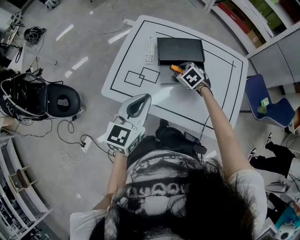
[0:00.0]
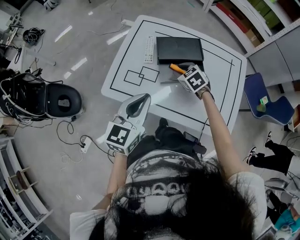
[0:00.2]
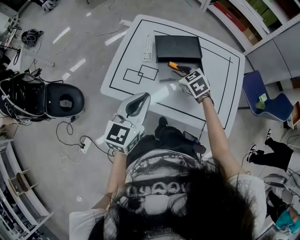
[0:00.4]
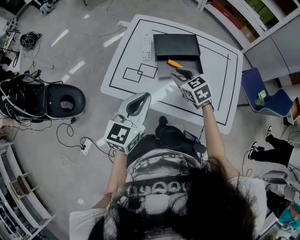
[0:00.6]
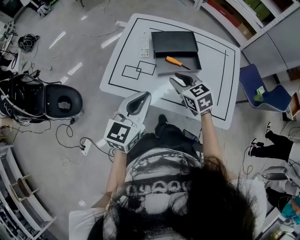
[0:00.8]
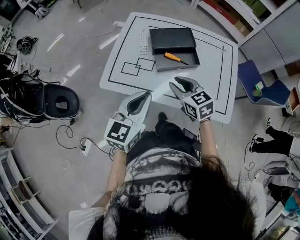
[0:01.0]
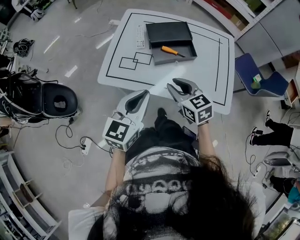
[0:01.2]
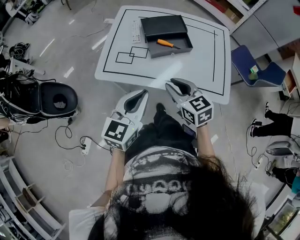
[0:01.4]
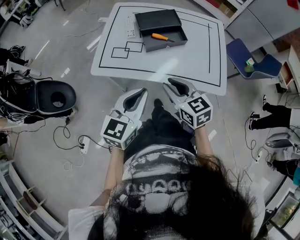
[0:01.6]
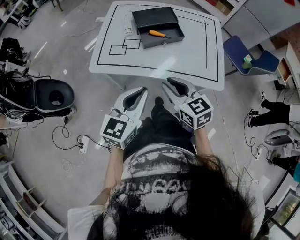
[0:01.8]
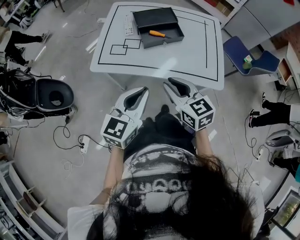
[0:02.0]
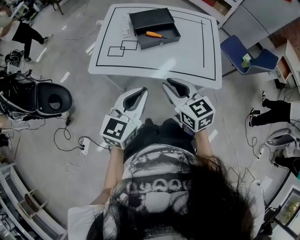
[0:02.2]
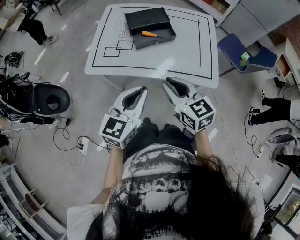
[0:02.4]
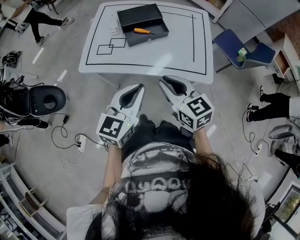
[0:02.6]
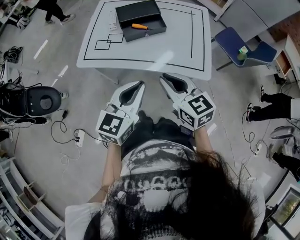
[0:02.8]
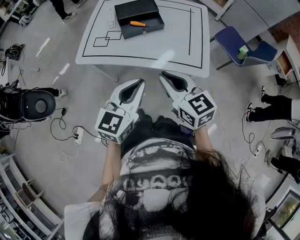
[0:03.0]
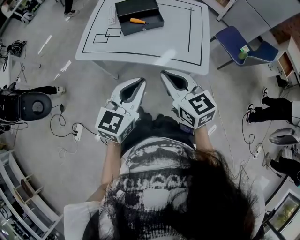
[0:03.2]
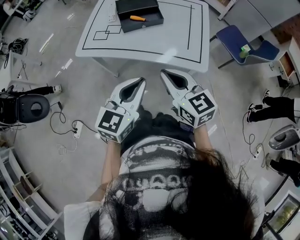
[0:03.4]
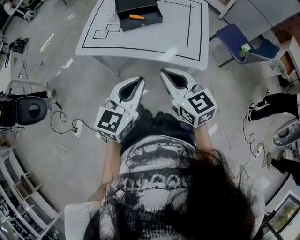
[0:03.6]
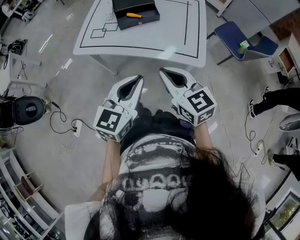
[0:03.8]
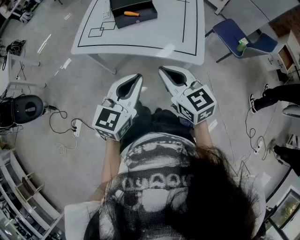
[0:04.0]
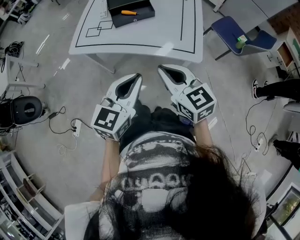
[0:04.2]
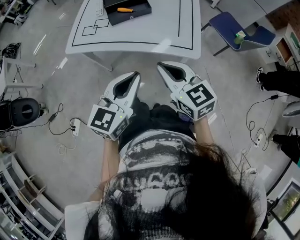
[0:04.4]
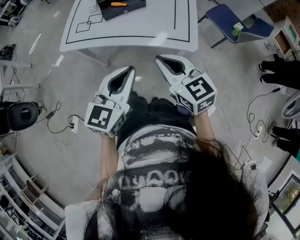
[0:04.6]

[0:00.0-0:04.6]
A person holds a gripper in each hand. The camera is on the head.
0:00.0 to 0:01.6: The left gripper is displaced backward by roughly 15 cm. Meanwhile the right gripper is displaced backward and upward by roughly 35 cm, and tips its fingers upward by some 30 degrees.
0:01.6 to 0:03.0: The left gripper travels to the right and backward by roughly 15 cm, while the right gripper is displaced to the right, backward and upward by some 15 cm.
0:03.0 to 0:04.6: The left gripper ends up roughly 5 cm from where it was, while the right gripper travels to the right by approximately 5 cm.

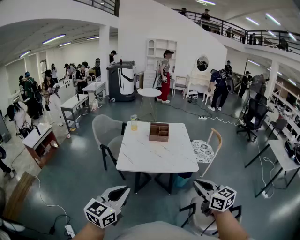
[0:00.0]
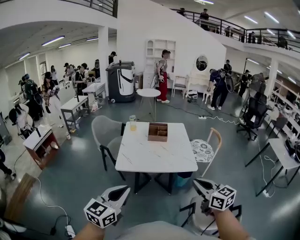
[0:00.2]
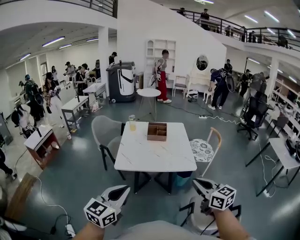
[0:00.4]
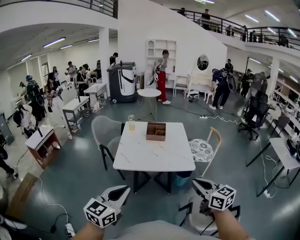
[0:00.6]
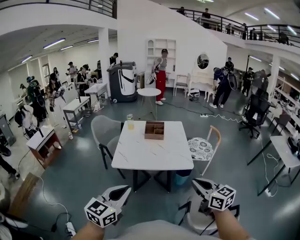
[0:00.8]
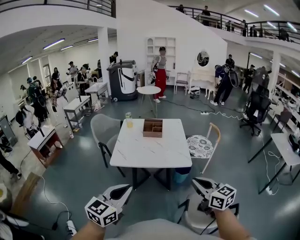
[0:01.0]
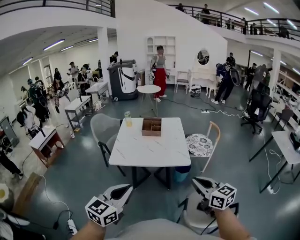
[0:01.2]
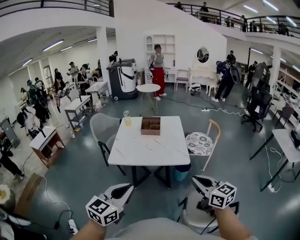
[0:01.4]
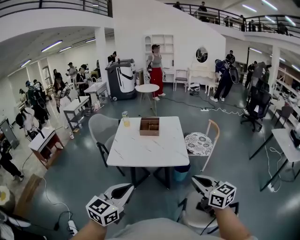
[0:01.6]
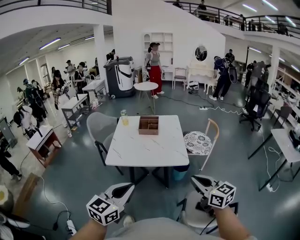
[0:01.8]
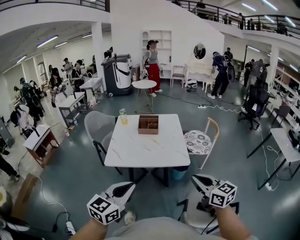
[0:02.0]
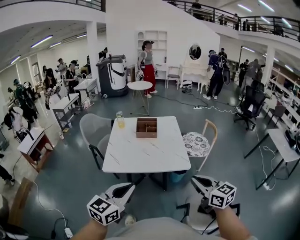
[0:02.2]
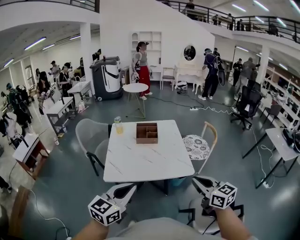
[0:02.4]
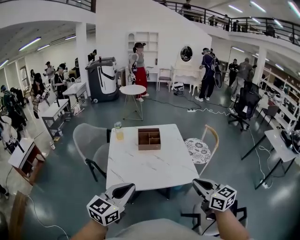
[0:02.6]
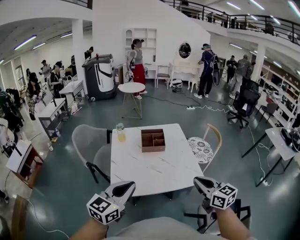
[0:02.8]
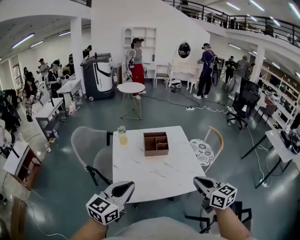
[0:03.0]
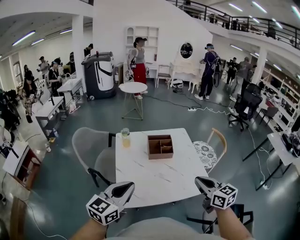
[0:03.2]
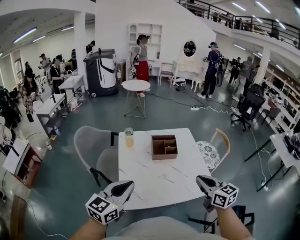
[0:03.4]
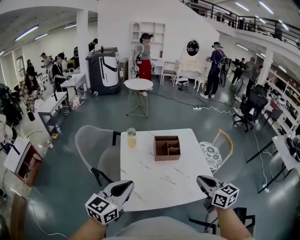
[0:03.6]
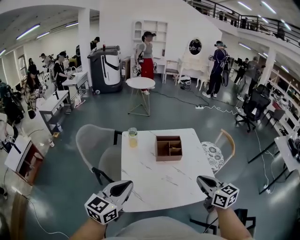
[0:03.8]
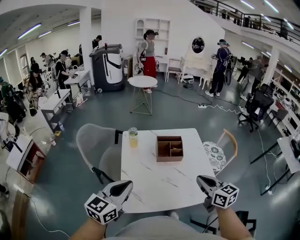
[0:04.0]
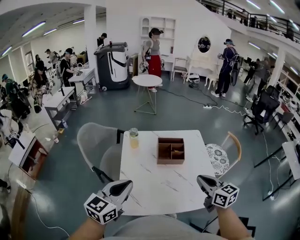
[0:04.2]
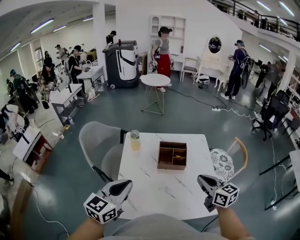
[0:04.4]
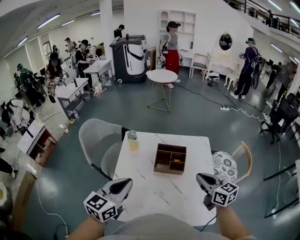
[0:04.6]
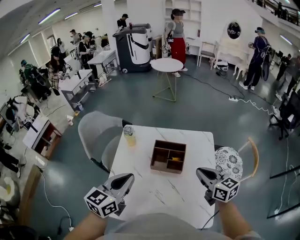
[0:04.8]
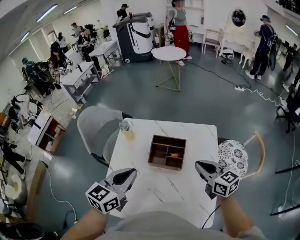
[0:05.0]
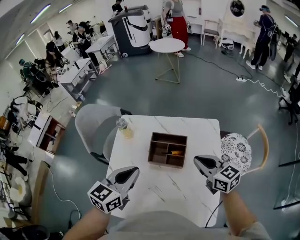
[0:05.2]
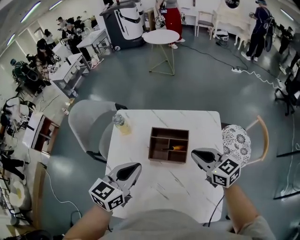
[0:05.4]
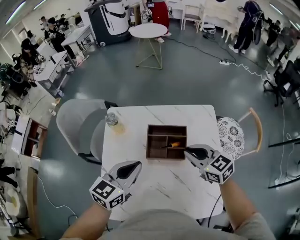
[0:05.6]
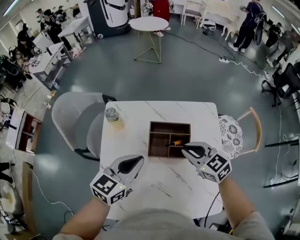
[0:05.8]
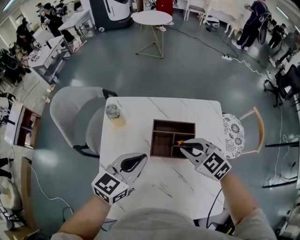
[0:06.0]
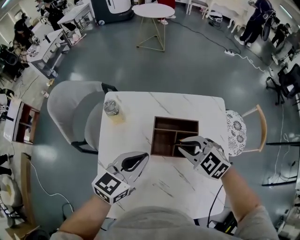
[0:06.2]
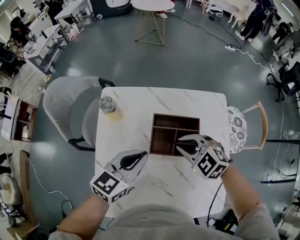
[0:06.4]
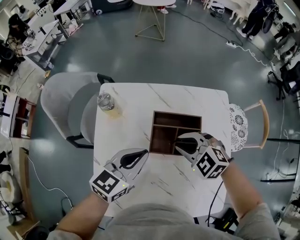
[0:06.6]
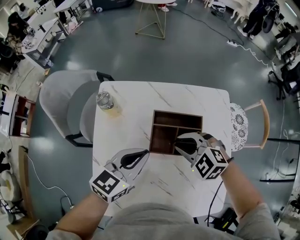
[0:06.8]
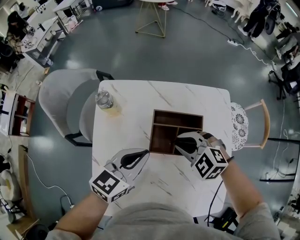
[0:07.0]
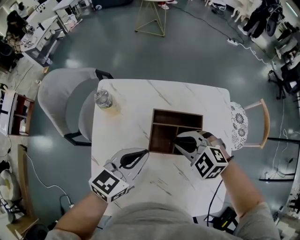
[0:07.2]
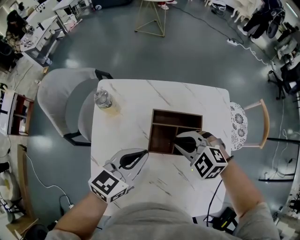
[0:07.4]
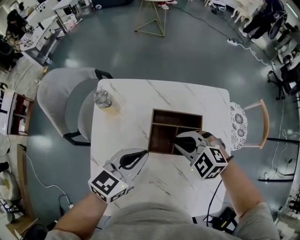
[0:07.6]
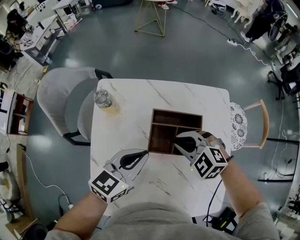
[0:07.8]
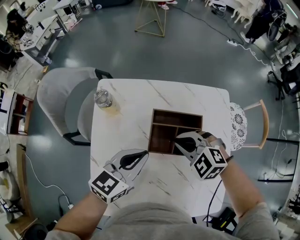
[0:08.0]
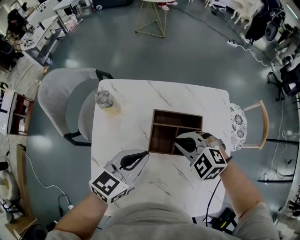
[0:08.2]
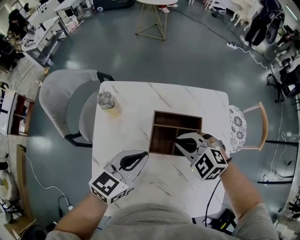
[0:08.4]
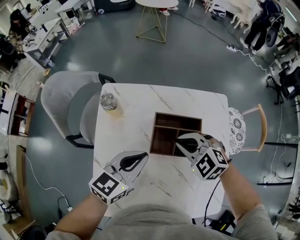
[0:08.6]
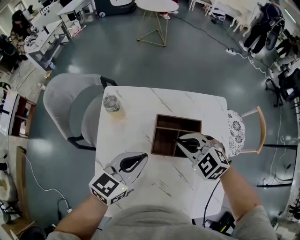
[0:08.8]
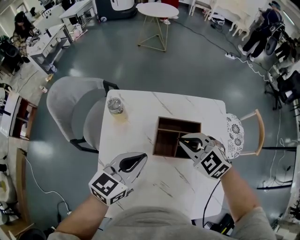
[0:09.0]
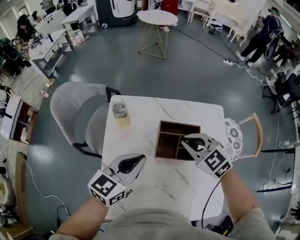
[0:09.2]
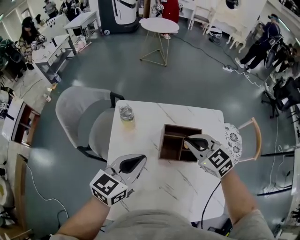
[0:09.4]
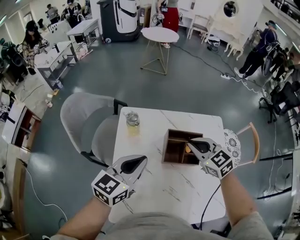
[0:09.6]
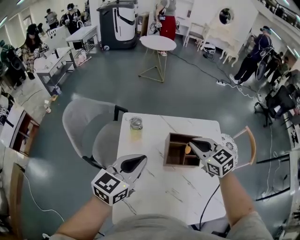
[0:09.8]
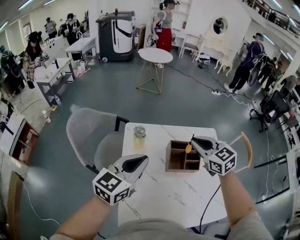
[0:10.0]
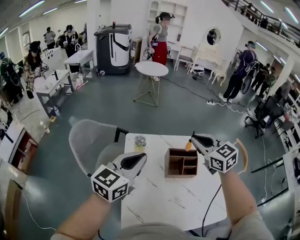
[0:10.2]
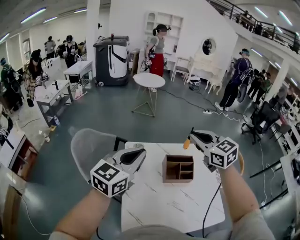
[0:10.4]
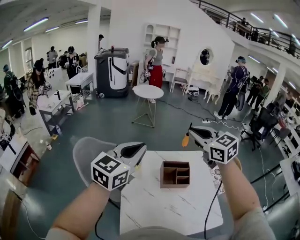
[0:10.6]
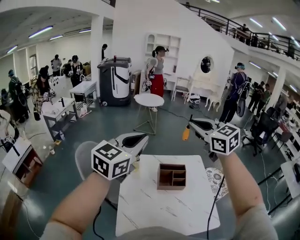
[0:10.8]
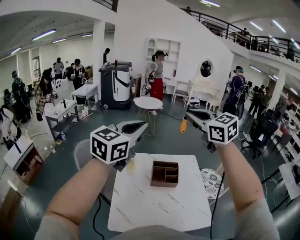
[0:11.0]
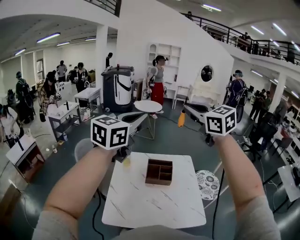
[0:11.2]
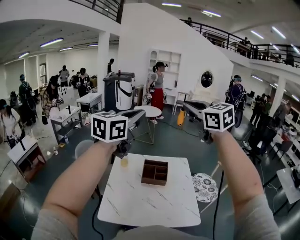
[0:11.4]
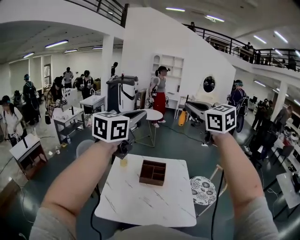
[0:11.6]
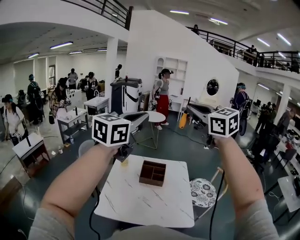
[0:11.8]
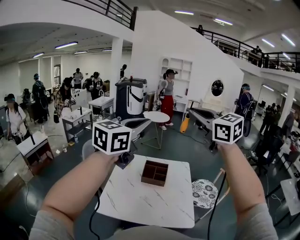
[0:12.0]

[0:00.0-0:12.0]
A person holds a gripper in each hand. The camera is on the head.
0:00.0 to 0:01.6: The grippers both shift to the right by roughly 15 cm.
0:01.6 to 0:03.0: The two grippers go some 35 cm forward and to the left.
0:03.0 to 0:04.4: The grippers both shift forward by roughly 20 cm.
0:04.4 to 0:06.0: The right gripper goes some 25 cm forward and downward, and rotates approximately 40 degrees. The left gripper heads forward, downward and to the right, covering roughly 25 cm.
0:06.0 to 0:07.6: Both grippers move downward, about 5 cm. The right gripper rotates about 20 degrees.
0:07.6 to 0:09.0: The left gripper moves some 5 cm. Meanwhile the right gripper moves upward, some 5 cm.
0:09.0 to 0:10.4: The left gripper moves upward and to the left, approximately 25 cm. The right gripper goes about 30 cm upward, and swivels some 30 degrees.
0:10.4 to 0:12.0: The two grippers go about 40 cm upward, backward and to the right. The right gripper changes its angle by roughly 20 degrees.

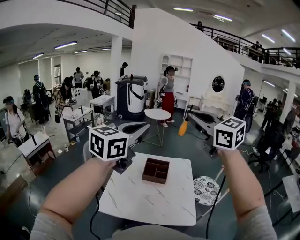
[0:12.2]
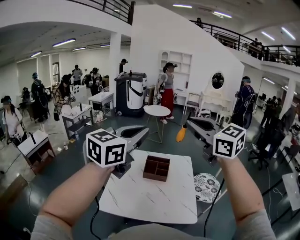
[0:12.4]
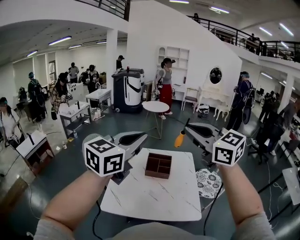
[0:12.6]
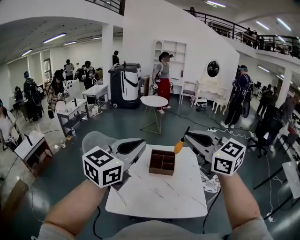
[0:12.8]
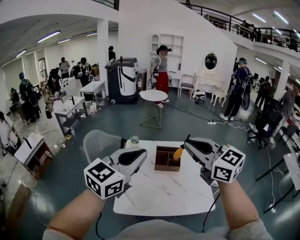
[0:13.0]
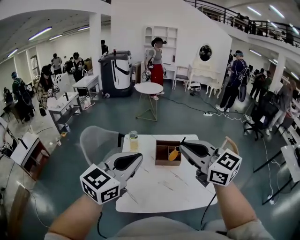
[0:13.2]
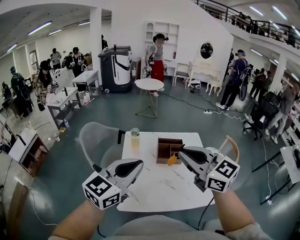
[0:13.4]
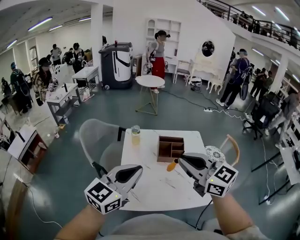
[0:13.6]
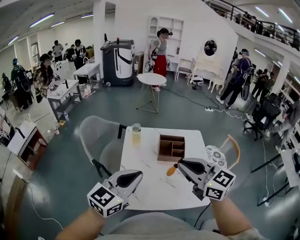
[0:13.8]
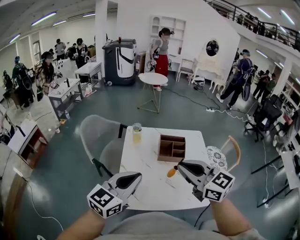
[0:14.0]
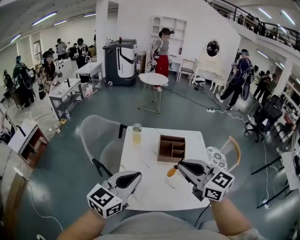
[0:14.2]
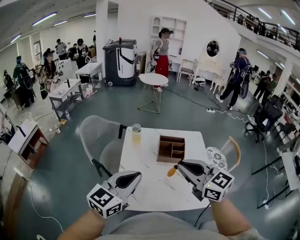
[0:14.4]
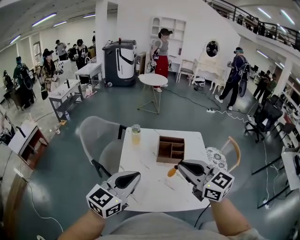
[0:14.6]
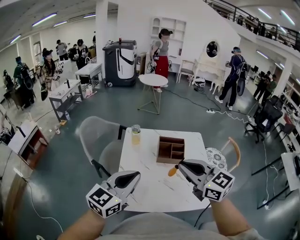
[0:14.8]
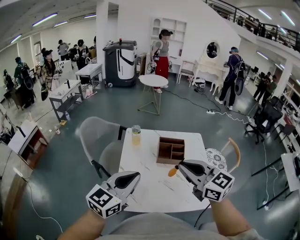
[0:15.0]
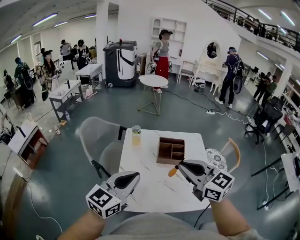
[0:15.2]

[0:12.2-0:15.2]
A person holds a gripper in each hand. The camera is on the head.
0:12.2 to 0:13.8: Both grippers move downward and to the left, some 30 cm.
0:13.8 to 0:15.2: The grippers make only small movements.

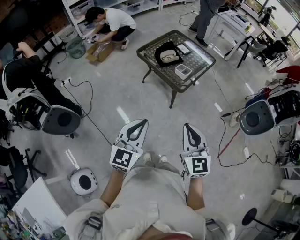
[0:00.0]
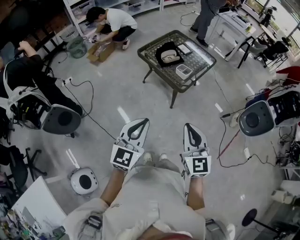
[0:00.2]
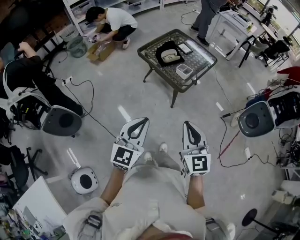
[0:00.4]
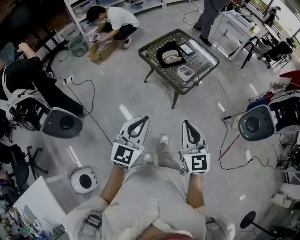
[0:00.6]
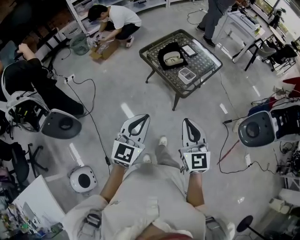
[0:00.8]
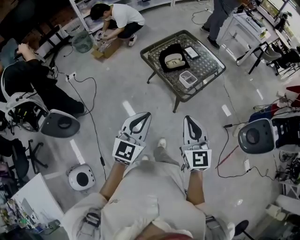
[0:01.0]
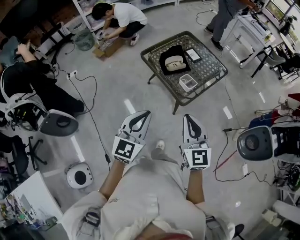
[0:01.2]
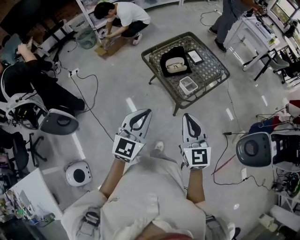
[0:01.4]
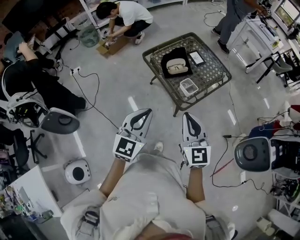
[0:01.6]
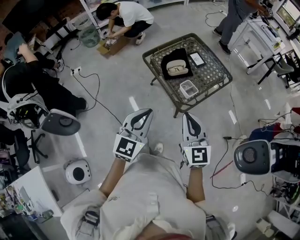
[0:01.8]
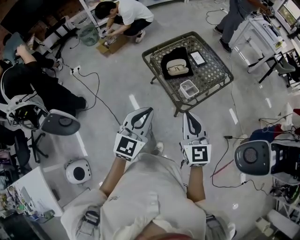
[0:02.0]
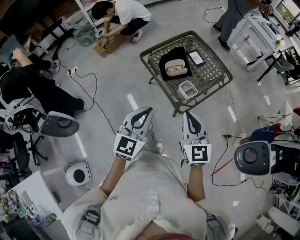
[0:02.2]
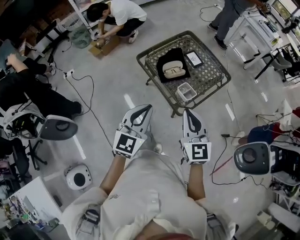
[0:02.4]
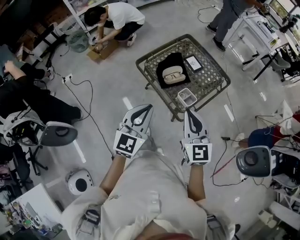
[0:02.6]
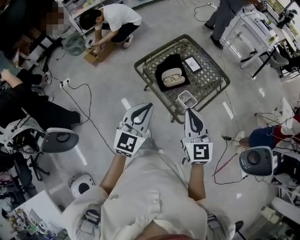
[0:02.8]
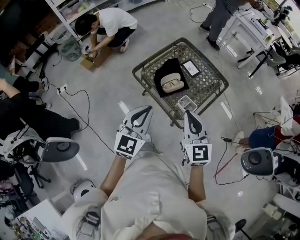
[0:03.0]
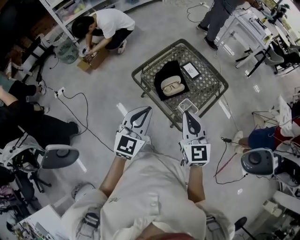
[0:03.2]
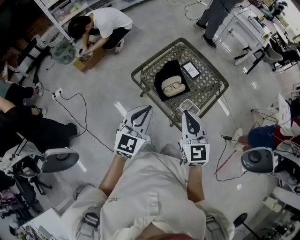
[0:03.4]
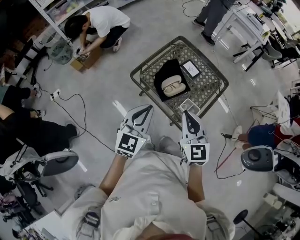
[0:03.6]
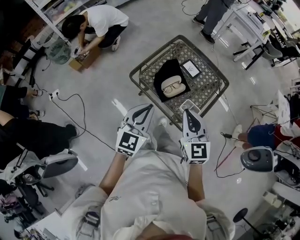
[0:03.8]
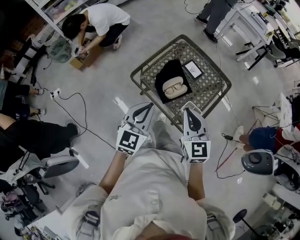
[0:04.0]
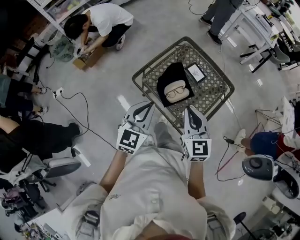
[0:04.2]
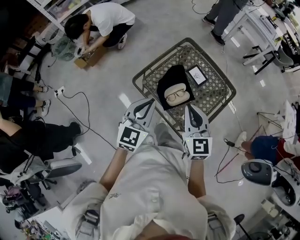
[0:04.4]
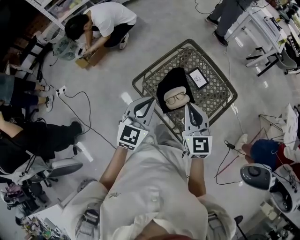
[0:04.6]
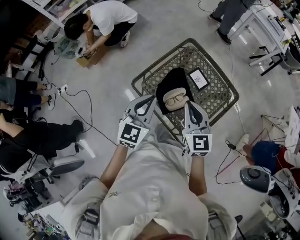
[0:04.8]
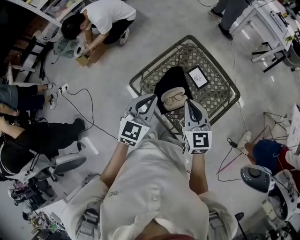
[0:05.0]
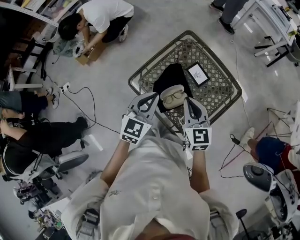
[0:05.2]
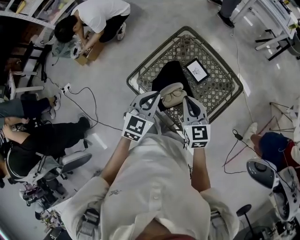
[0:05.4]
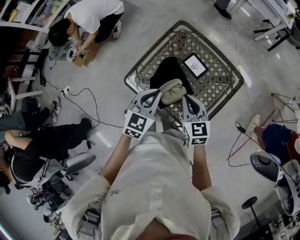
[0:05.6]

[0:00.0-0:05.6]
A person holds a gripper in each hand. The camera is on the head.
0:00.0 to 0:01.4: Both grippers travel together forward, about 20 cm.
0:01.4 to 0:02.8: The grippers both shift forward by approximately 15 cm.
0:02.8 to 0:04.2: The left gripper travels forward by approximately 20 cm. The right gripper goes some 20 cm forward and to the left.
0:04.2 to 0:05.6: The right gripper goes some 20 cm forward, downward and to the right, while the left gripper travels forward, to the right and downward by roughly 20 cm.
